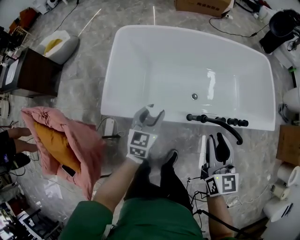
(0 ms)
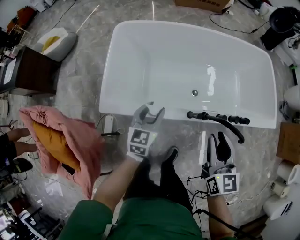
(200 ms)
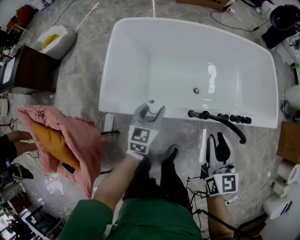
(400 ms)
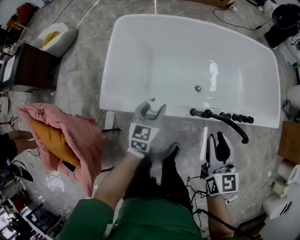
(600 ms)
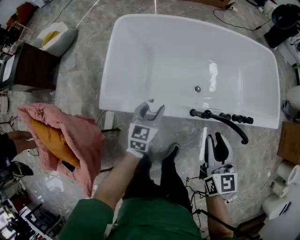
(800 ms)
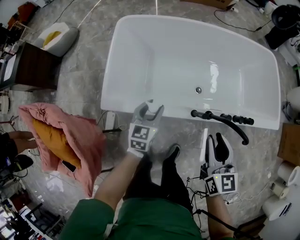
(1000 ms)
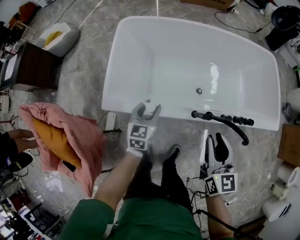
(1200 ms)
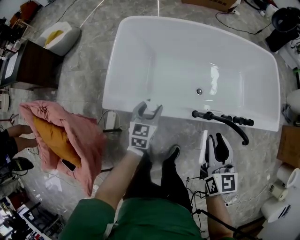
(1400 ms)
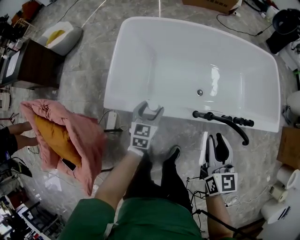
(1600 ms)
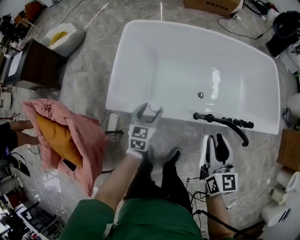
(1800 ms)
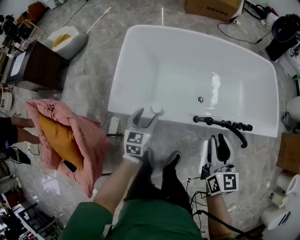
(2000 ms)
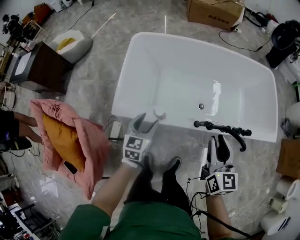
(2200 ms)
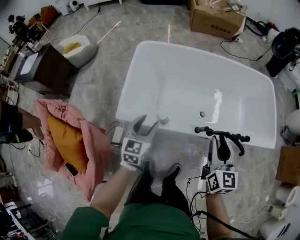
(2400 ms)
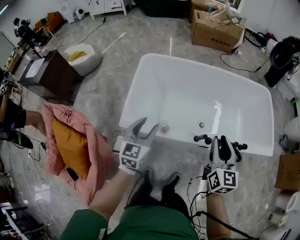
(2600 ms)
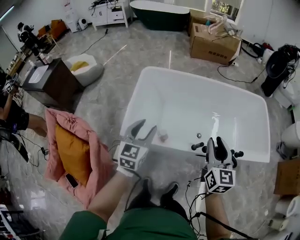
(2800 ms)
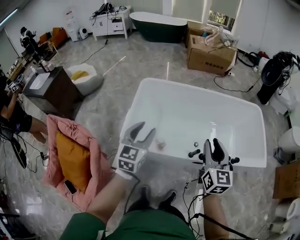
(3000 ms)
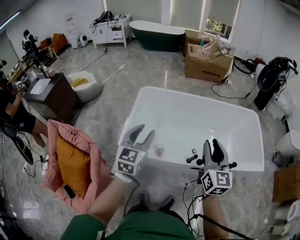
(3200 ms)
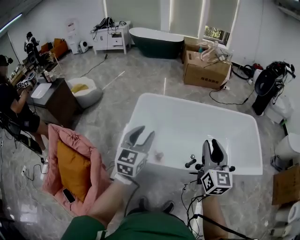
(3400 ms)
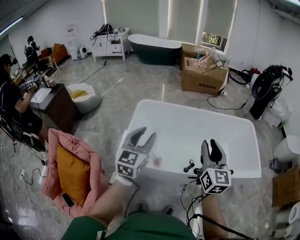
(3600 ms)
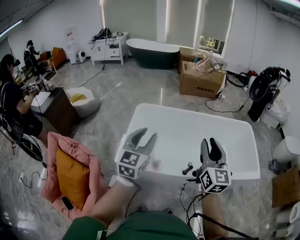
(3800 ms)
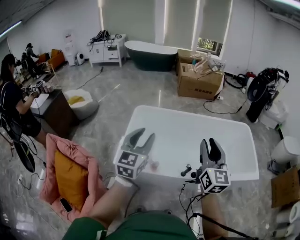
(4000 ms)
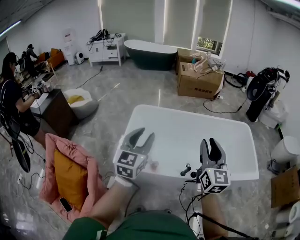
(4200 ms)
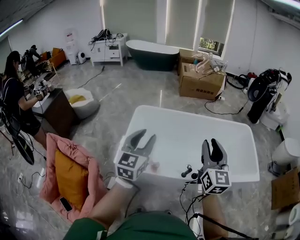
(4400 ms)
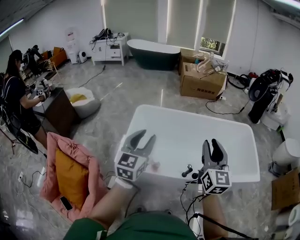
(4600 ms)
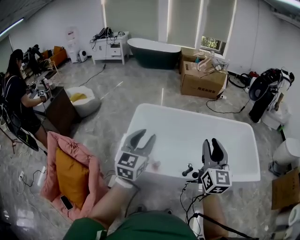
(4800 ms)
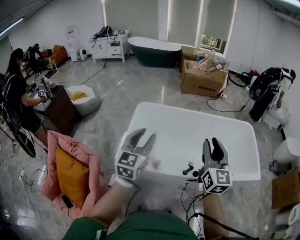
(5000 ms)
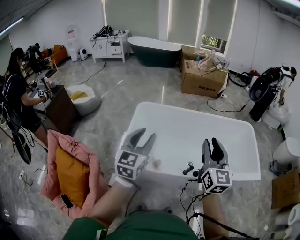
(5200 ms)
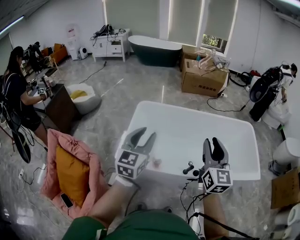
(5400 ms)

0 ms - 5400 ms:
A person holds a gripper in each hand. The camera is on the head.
0 ms - 1400 ms: The right gripper shifts by about 5 cm. Meanwhile the left gripper goes some 10 cm downward.
1400 ms - 2800 ms: The right gripper travels upward by some 20 cm. Meanwhile the left gripper goes some 30 cm upward.
2800 ms - 4000 ms: The two grippers go some 15 cm upward.
4000 ms - 5400 ms: The grippers move only a little.

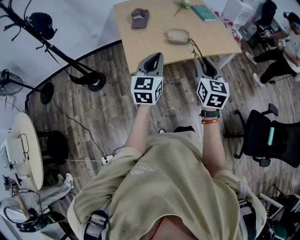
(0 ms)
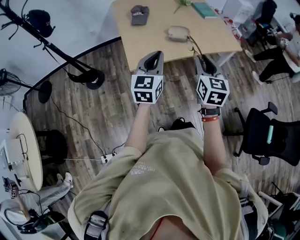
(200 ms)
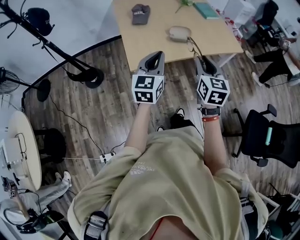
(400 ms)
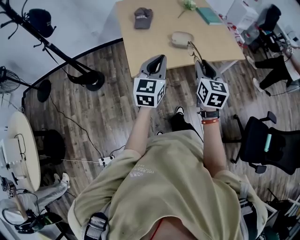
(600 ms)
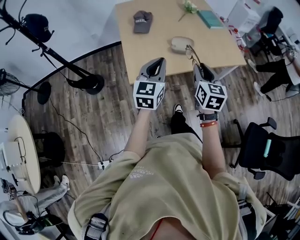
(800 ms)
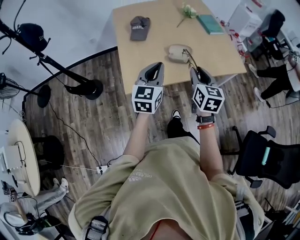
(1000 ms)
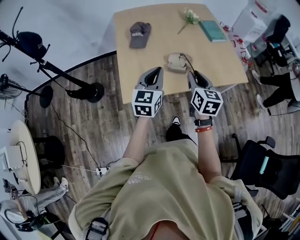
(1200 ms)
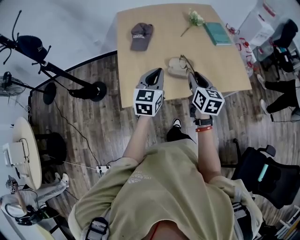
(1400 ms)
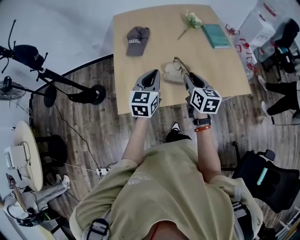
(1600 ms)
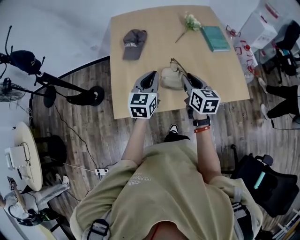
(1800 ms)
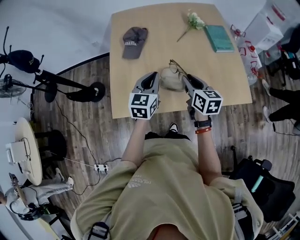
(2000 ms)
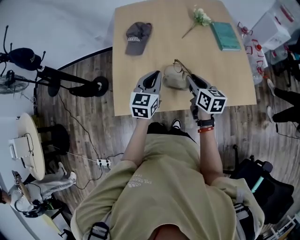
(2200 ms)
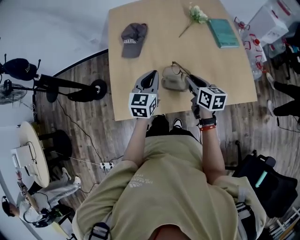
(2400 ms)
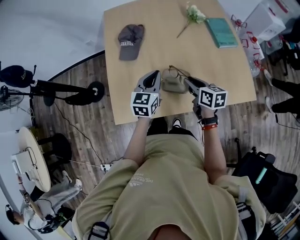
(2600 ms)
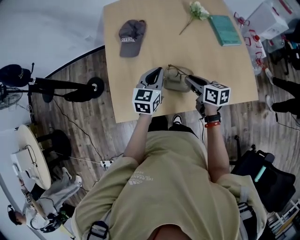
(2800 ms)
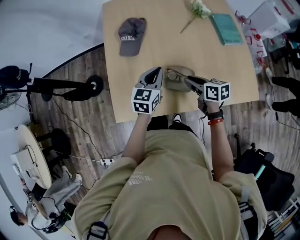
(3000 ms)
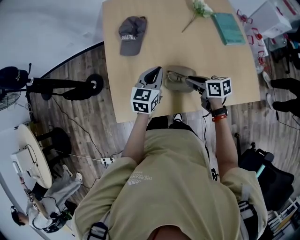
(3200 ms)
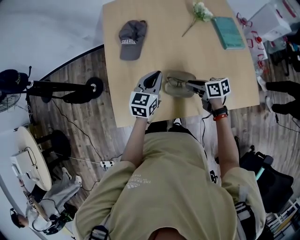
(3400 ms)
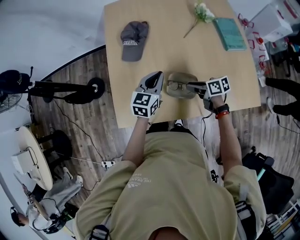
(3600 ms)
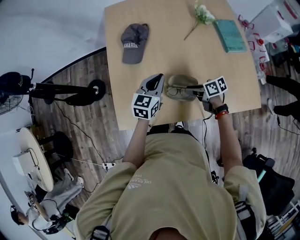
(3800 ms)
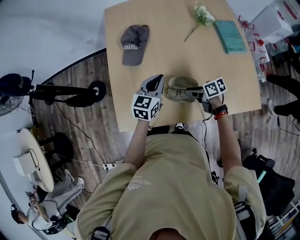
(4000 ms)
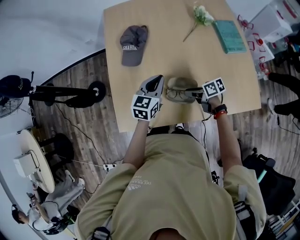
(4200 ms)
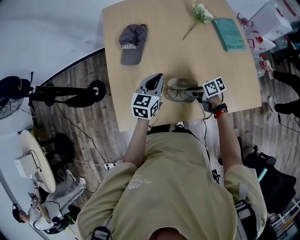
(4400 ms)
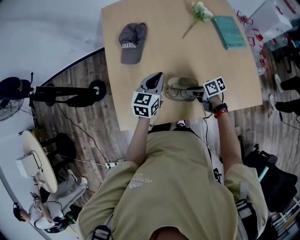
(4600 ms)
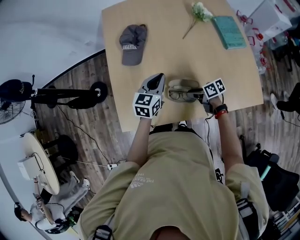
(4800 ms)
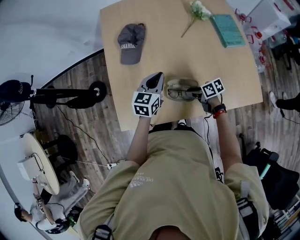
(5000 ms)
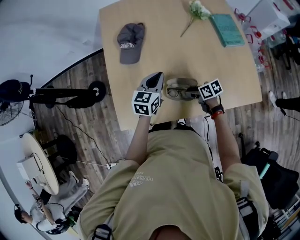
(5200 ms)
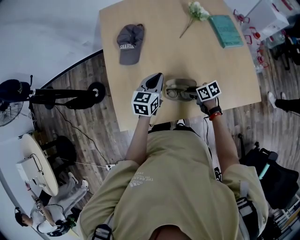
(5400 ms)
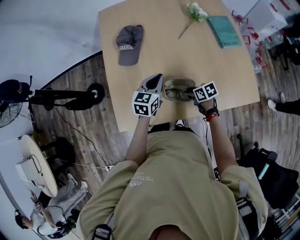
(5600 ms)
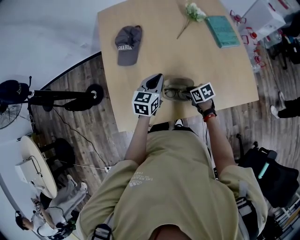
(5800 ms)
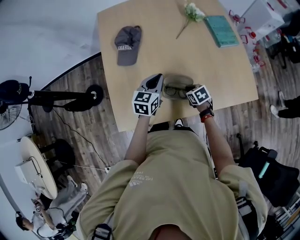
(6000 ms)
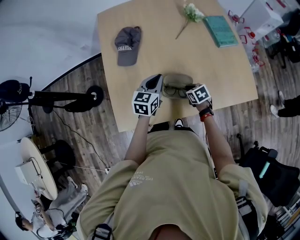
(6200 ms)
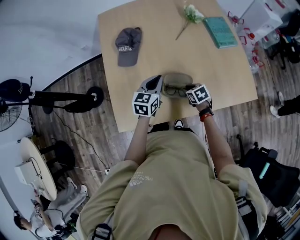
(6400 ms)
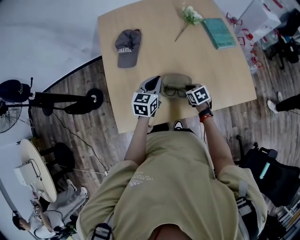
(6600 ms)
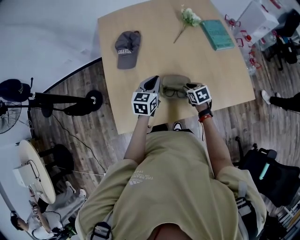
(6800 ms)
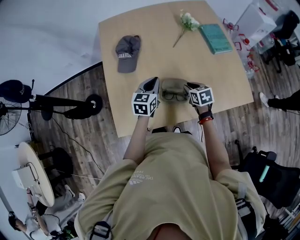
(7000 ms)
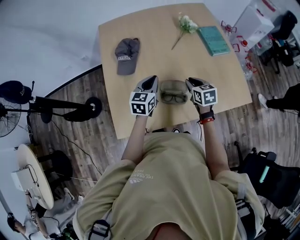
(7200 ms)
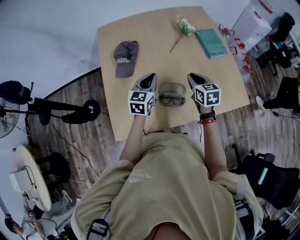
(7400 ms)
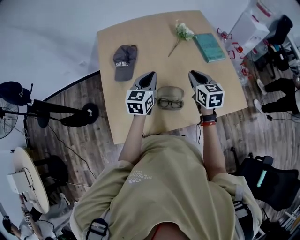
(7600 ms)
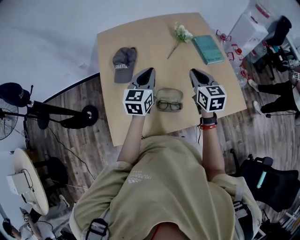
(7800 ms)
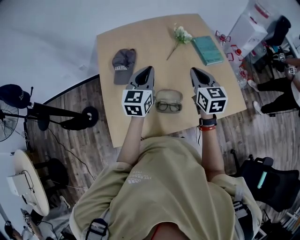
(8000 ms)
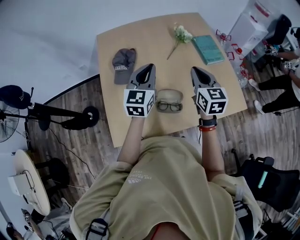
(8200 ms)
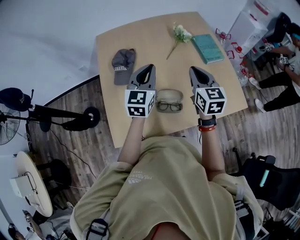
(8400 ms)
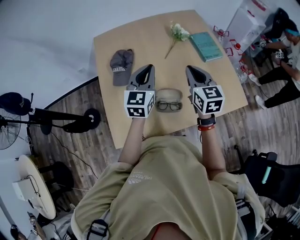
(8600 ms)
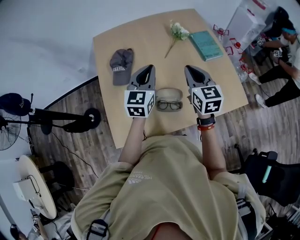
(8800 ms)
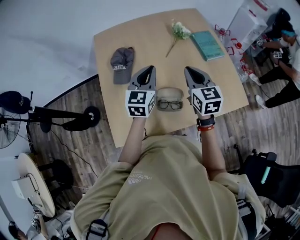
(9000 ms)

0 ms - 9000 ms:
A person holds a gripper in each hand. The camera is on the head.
0 ms - 1600 ms: Both grippers travel together forward, roughly 40 cm. The right gripper swivels some 30 degrees.
1600 ms - 3000 ms: The two grippers go some 20 cm forward and downward. The right gripper turns by approximately 40 degrees.
3000 ms - 4400 ms: The right gripper heads downward, covering roughly 10 cm, and swivels roughly 30 degrees.
4400 ms - 6000 ms: The right gripper changes place by approximately 5 cm, and angles its fingers downward, by roughly 30 degrees.
6000 ms - 7600 ms: The left gripper is displaced upward by some 10 cm. The right gripper shifts about 25 cm upward, and points its fingers some 30 degrees further upward.
7600 ms - 9000 ms: The two grippers go about 5 cm upward.

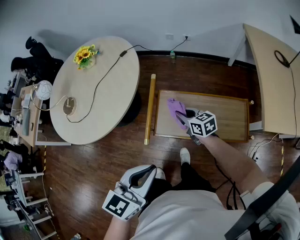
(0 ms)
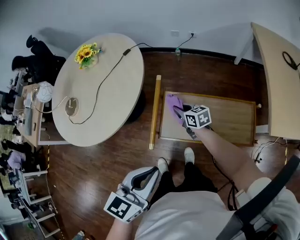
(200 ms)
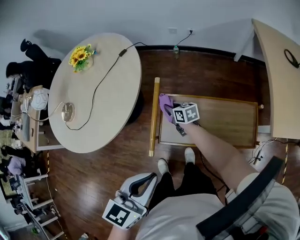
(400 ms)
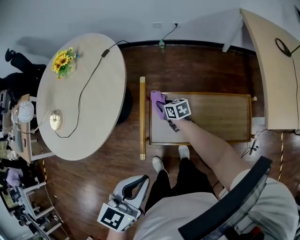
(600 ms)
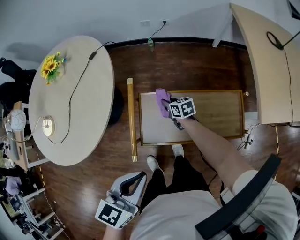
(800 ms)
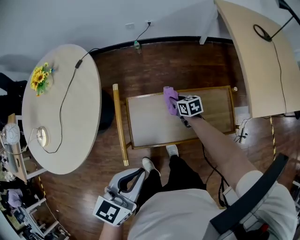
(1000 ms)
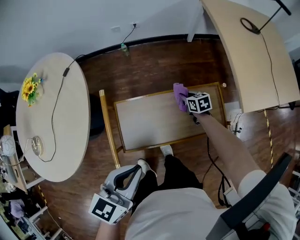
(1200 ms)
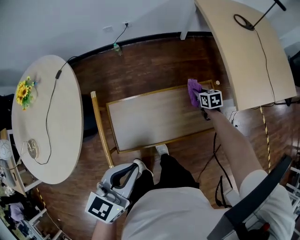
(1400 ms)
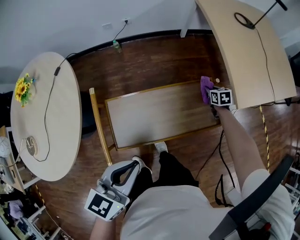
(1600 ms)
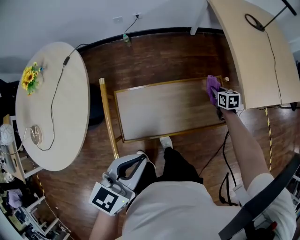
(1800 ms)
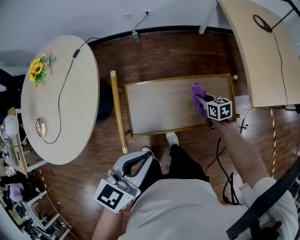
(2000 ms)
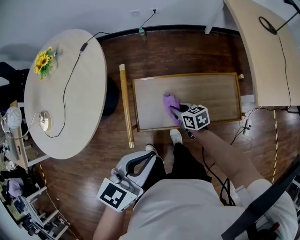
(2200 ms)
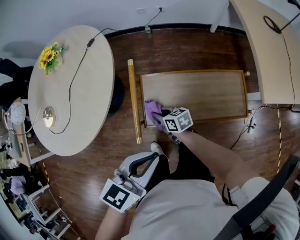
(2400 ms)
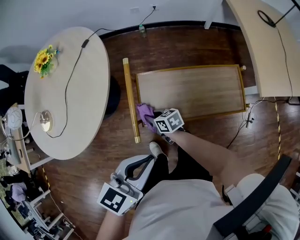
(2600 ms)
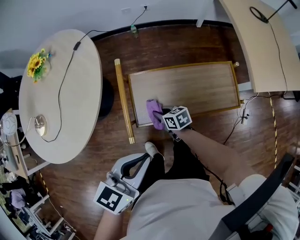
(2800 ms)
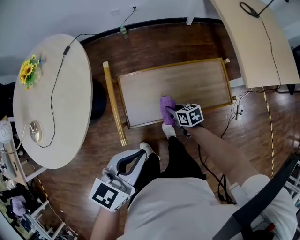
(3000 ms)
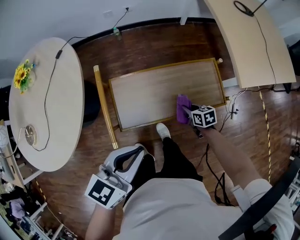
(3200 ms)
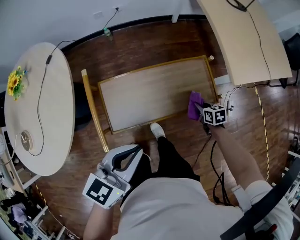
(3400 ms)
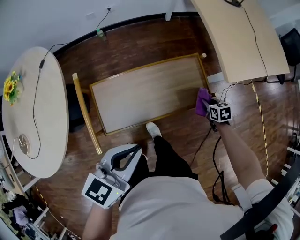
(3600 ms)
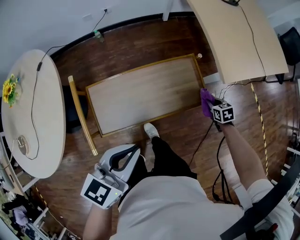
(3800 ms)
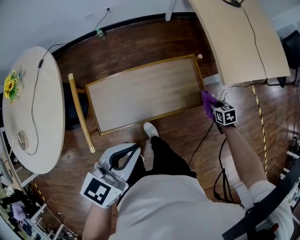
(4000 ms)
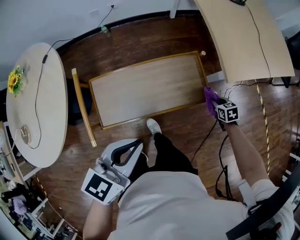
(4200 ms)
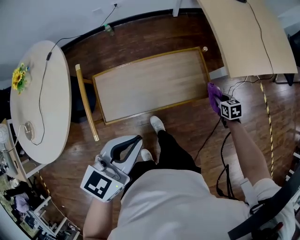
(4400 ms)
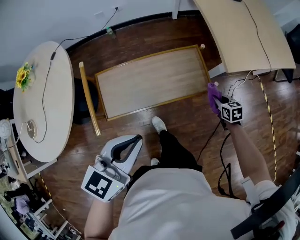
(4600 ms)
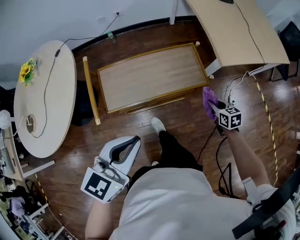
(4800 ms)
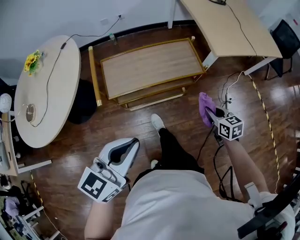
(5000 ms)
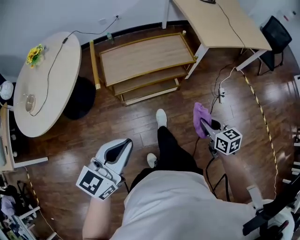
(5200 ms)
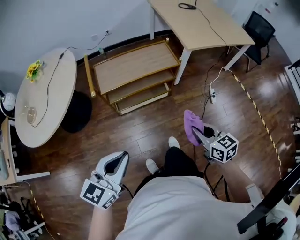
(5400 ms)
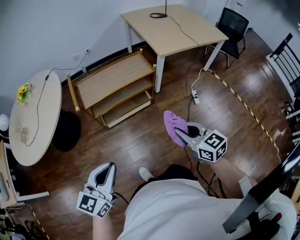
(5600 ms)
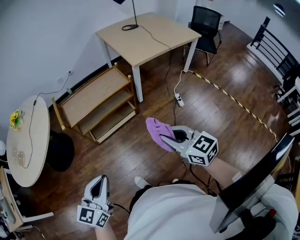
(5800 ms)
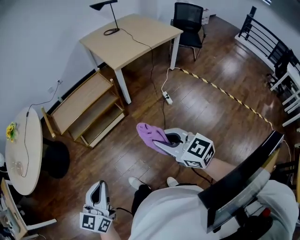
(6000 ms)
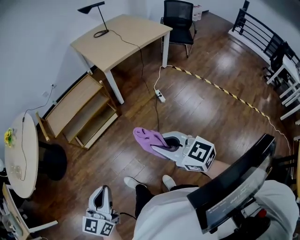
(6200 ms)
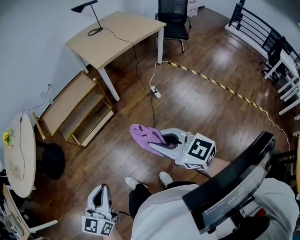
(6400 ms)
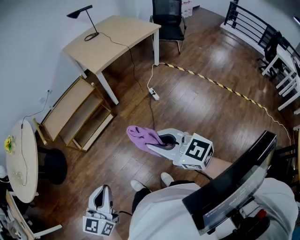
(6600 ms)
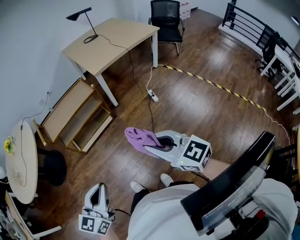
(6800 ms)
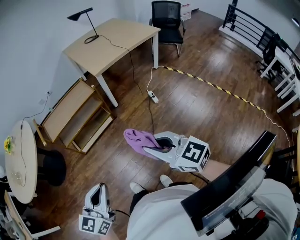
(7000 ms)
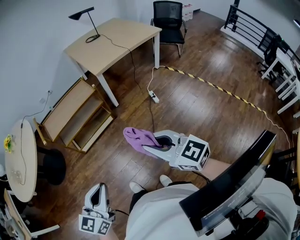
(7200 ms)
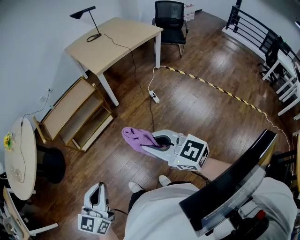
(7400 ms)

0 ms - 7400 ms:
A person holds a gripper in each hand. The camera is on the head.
0 ms - 1400 ms: The right gripper shifts by some 40 cm, and turns by approximately 40 degrees. The left gripper shifts by approximately 15 cm.
1400 ms - 3000 ms: The left gripper changes place by approximately 10 cm. Meanwhile the right gripper rotates about 20 degrees.
3000 ms - 4400 ms: The left gripper is displaced to the right by some 15 cm. Meanwhile the right gripper is displaced to the right by approximately 40 cm, and rotates some 30 degrees.
4400 ms - 6000 ms: The two grippers travel together, backward, roughly 50 cm. The right gripper goes about 40 cm upward, and tips its fingers upward by roughly 40 degrees.
6000 ms - 7400 ms: The left gripper goes about 10 cm to the right and backward. The right gripper travels backward and to the right by about 10 cm.

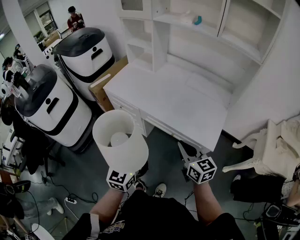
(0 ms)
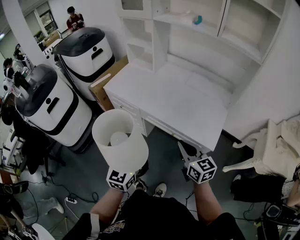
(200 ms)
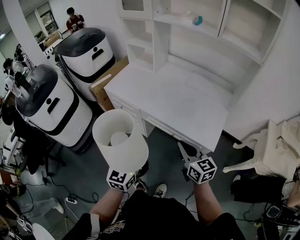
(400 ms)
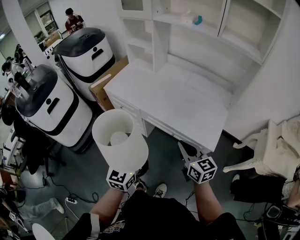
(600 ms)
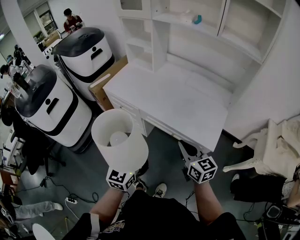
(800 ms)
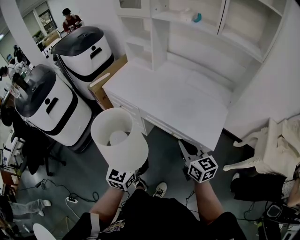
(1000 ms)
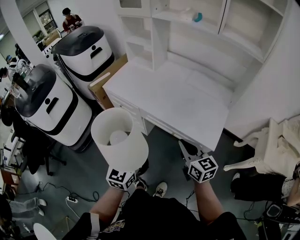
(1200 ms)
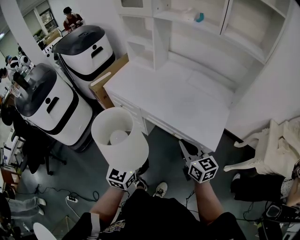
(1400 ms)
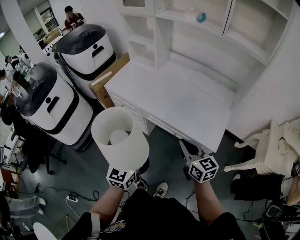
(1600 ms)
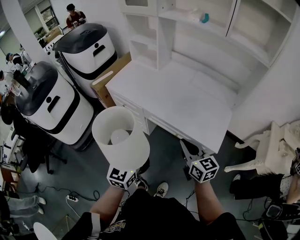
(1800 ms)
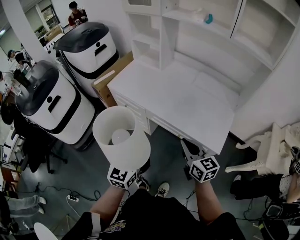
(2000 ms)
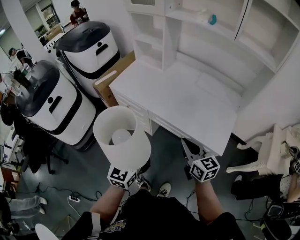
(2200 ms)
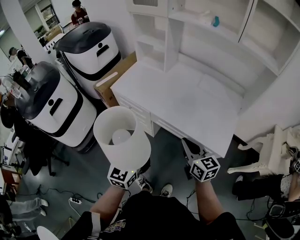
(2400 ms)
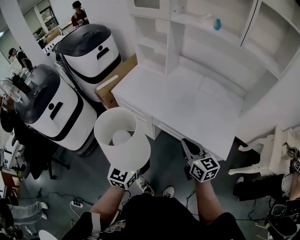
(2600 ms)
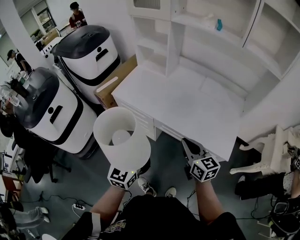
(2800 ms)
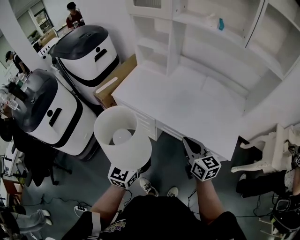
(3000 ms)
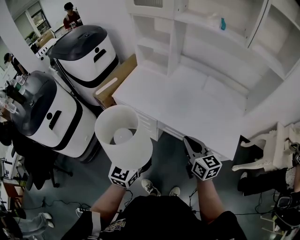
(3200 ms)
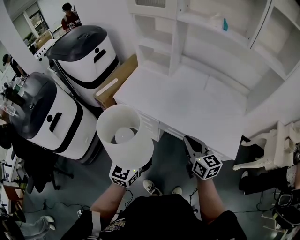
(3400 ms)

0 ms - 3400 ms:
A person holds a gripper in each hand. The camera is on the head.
0 ms - 1600 ms: The grippers stay close to where they were, moving slightly.
1600 ms - 3400 ms: The two grippers go roughly 20 cm to the left and forward.
